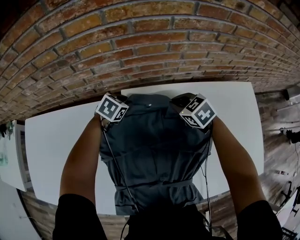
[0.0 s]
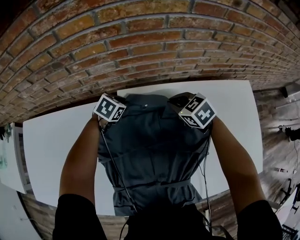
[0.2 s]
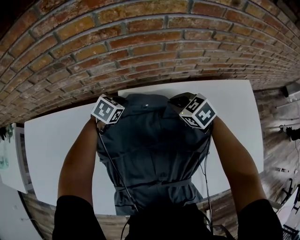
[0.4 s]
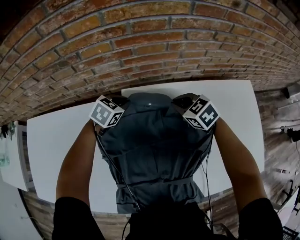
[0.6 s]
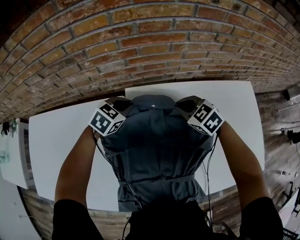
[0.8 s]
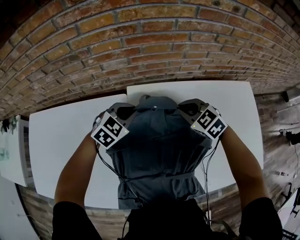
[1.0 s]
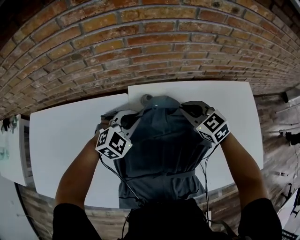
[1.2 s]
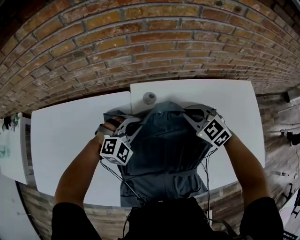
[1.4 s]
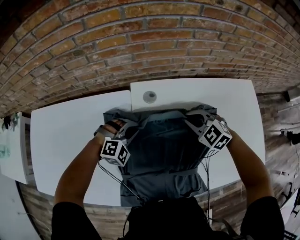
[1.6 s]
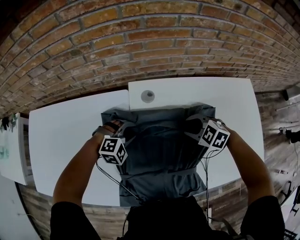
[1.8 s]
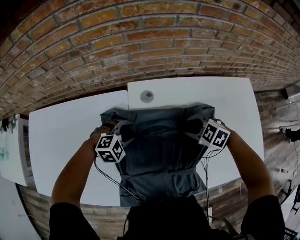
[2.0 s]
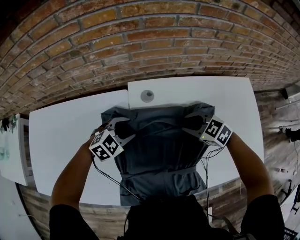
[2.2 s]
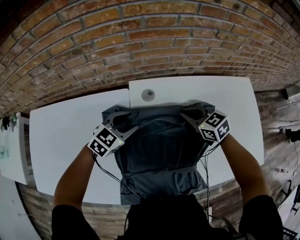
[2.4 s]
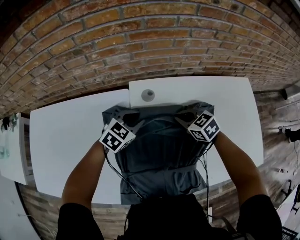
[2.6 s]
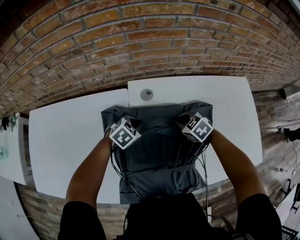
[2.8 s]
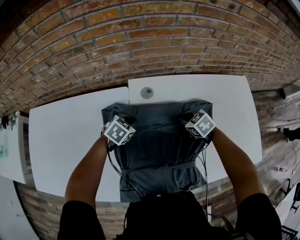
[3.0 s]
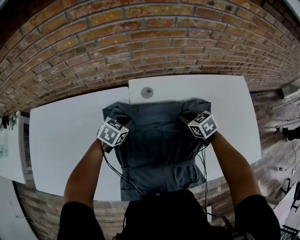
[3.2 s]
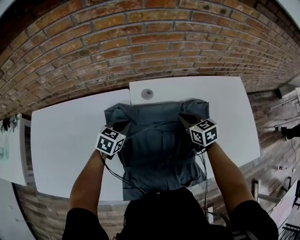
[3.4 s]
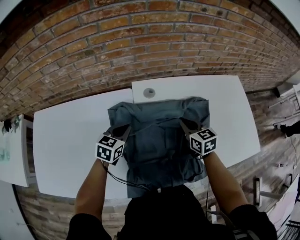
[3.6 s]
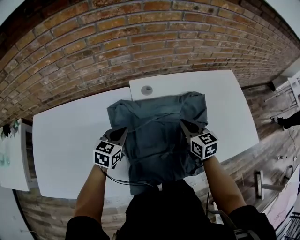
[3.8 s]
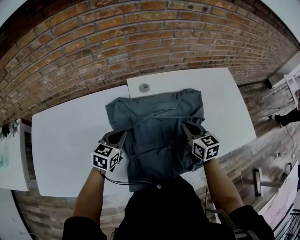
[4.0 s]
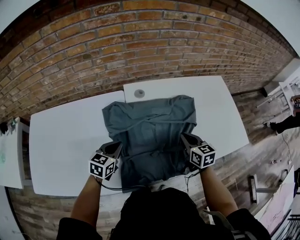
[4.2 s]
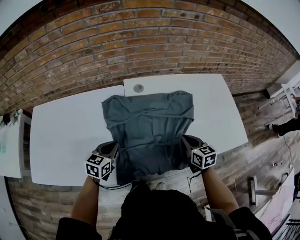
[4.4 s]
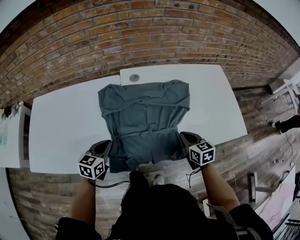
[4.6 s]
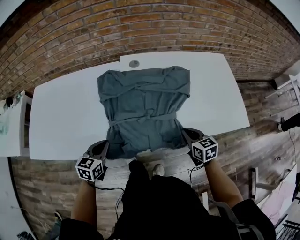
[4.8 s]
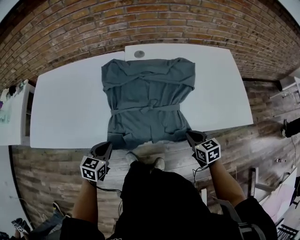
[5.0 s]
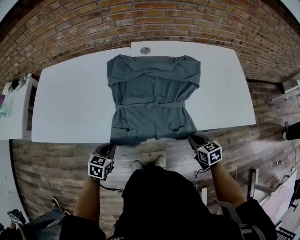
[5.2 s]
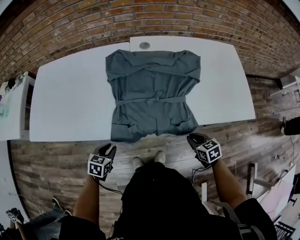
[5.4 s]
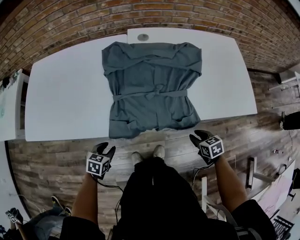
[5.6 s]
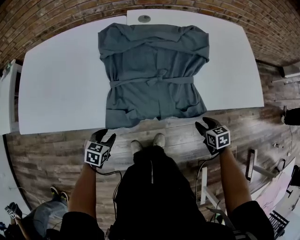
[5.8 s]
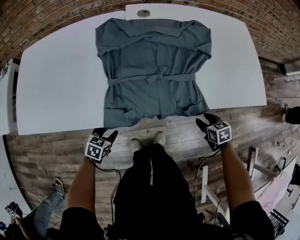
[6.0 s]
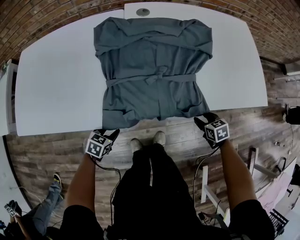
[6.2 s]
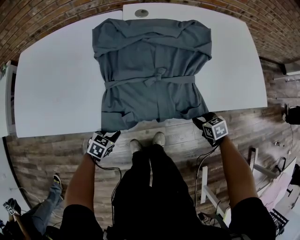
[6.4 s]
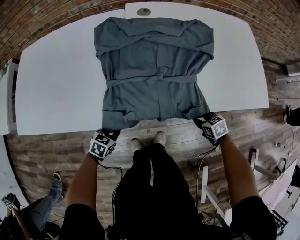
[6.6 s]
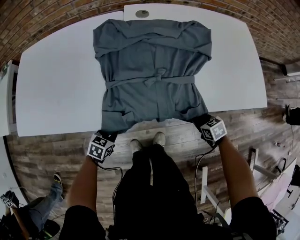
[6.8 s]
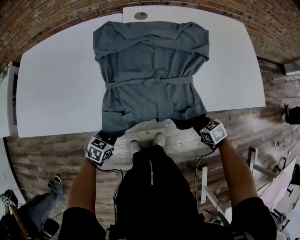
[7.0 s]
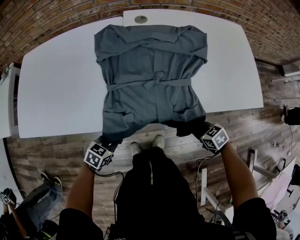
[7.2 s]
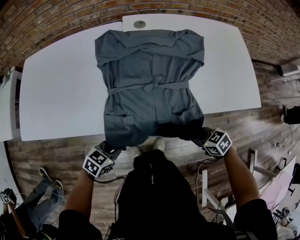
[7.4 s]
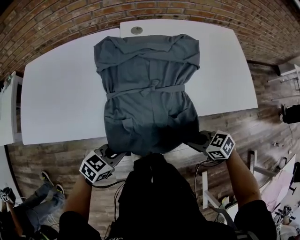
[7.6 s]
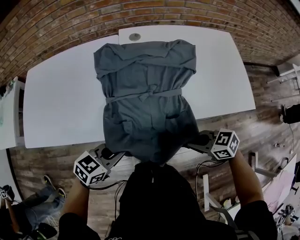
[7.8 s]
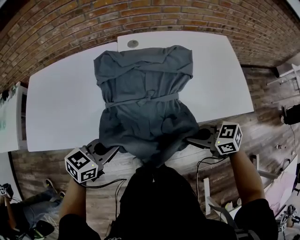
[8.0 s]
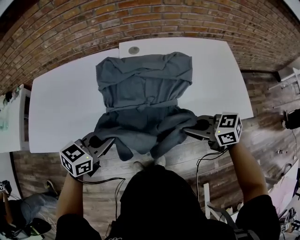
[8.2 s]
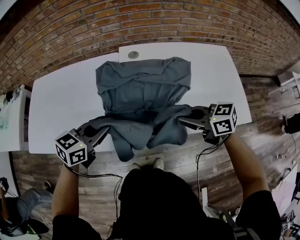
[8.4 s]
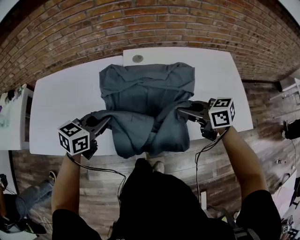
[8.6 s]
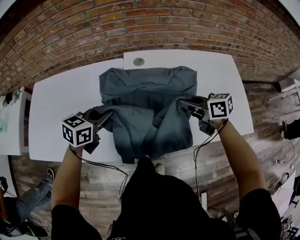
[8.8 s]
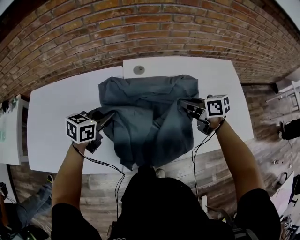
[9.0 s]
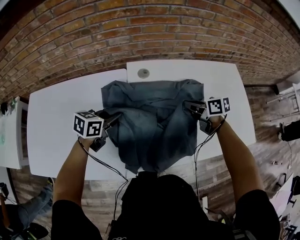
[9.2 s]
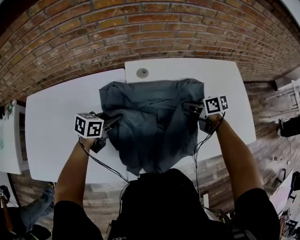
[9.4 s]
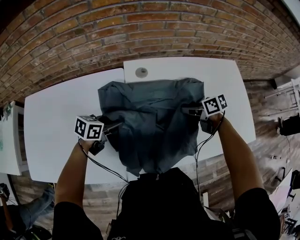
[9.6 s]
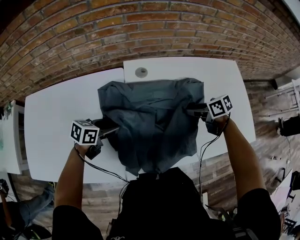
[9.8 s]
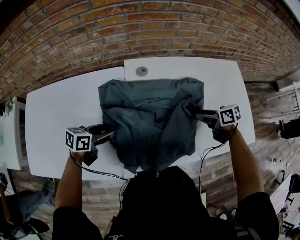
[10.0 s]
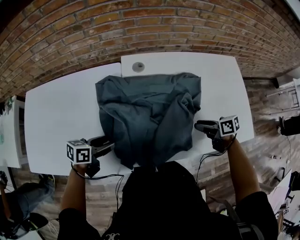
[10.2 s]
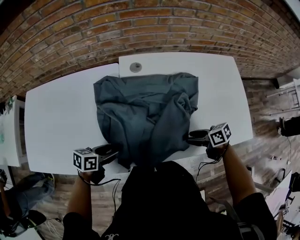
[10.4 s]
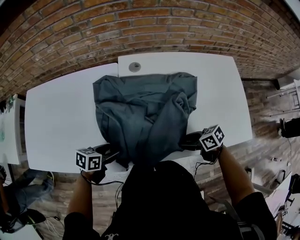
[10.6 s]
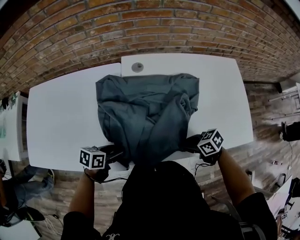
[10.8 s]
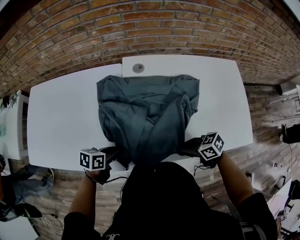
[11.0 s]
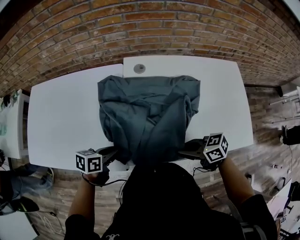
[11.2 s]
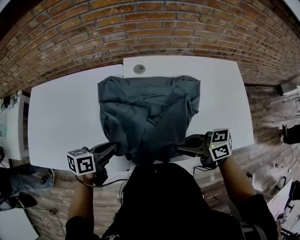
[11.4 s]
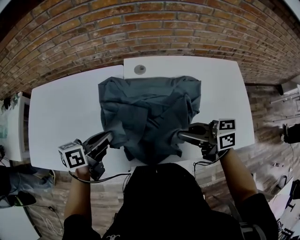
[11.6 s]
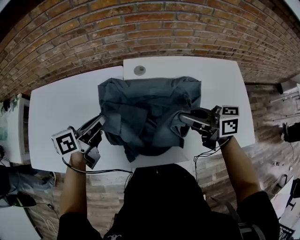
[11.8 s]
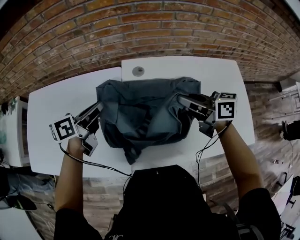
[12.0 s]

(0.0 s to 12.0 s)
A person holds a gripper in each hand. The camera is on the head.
0.0 s - 1.6 s: The left gripper heads backward, covering roughly 20 cm, and rotates around the line of its fingers by about 60 degrees, clockwise from behind. Meanwhile the right gripper heads backward, covering some 10 cm, and rotates about 30 degrees.
1.6 s - 3.0 s: The right gripper goes up and down, about 10 cm each way, reversing 2 times, rotates roughly 30 degrees, and opens, then closes again; the left gripper changes place by roughly 5 cm, rotates around the line of its fingers by some 50 degrees, counterclockwise from behind, and opens, then closes once more.
3.0 s - 4.4 s: Both grippers move backward and upward, approximately 20 cm. The right gripper rotates some 40 degrees; the left gripper turns by roughly 30 degrees.
4.4 s - 6.0 s: The right gripper travels downward, backward and to the right by approximately 30 cm, swivels roughly 30 degrees, and opens up. Meanwhile the left gripper is displaced backward and downward by roughly 30 cm, swivels about 30 degrees, and opens.
6.0 s - 7.6 s: Both grippers travel together upward, about 15 cm. The left gripper turns by some 20 degrees, and closes up. Meanwhile the right gripper swivels about 40 degrees, and closes its fingers.
7.6 s - 9.0 s: The left gripper changes place by some 35 cm; the right gripper changes place by roughly 35 cm, and swivels approximately 30 degrees.
9.0 s - 10.4 s: The right gripper ends up roughly 20 cm from where it was, swivels approximately 20 degrees, and opens its fingers. Meanwhile the left gripper ends up about 15 cm from where it was, changes its angle by approximately 30 degrees, and opens up.
10.4 s - 12.0 s: The right gripper shifts approximately 20 cm upward, changes its angle by about 30 degrees, and closes its fingers. The left gripper shifts by about 25 cm, turns by about 30 degrees, and closes up.

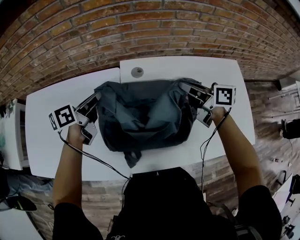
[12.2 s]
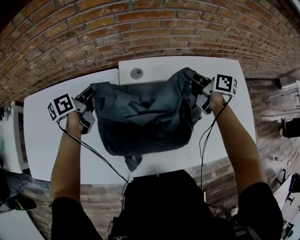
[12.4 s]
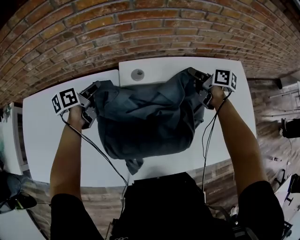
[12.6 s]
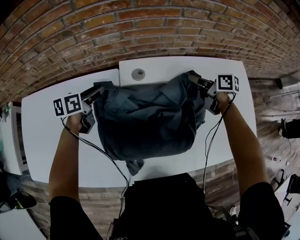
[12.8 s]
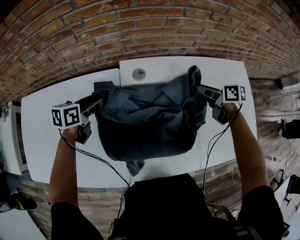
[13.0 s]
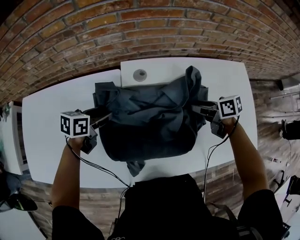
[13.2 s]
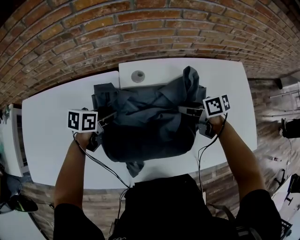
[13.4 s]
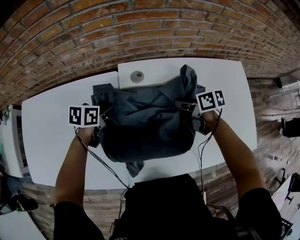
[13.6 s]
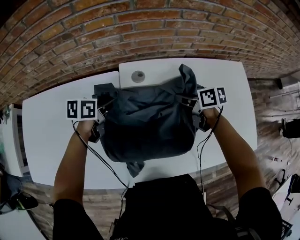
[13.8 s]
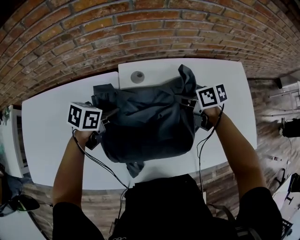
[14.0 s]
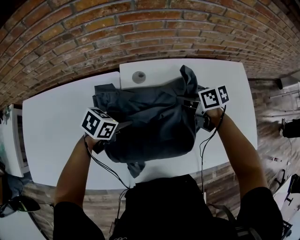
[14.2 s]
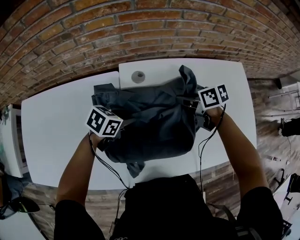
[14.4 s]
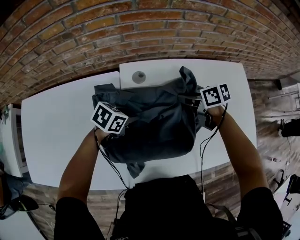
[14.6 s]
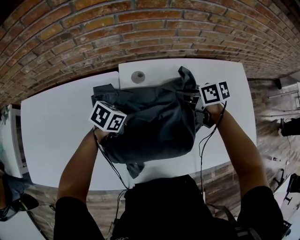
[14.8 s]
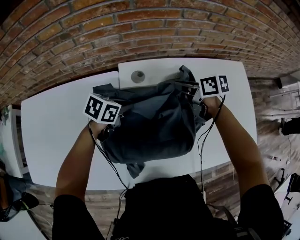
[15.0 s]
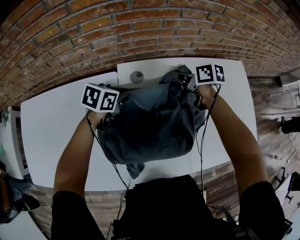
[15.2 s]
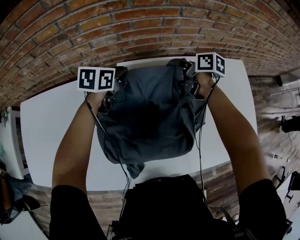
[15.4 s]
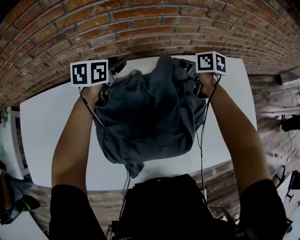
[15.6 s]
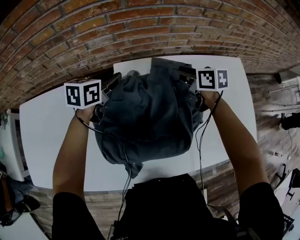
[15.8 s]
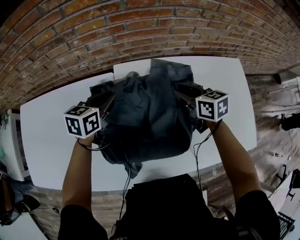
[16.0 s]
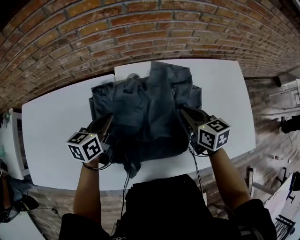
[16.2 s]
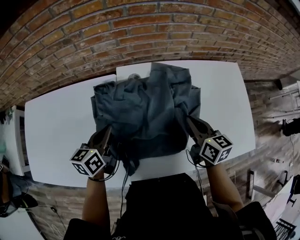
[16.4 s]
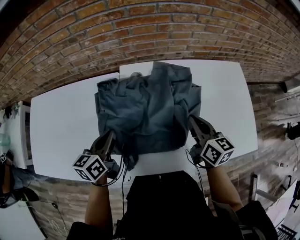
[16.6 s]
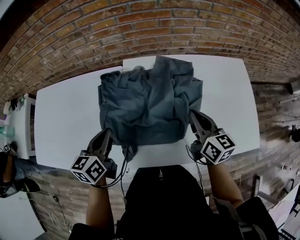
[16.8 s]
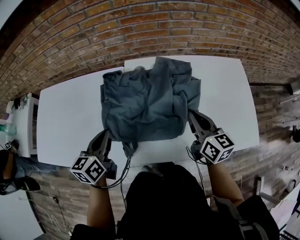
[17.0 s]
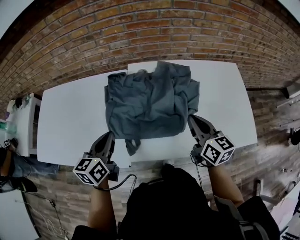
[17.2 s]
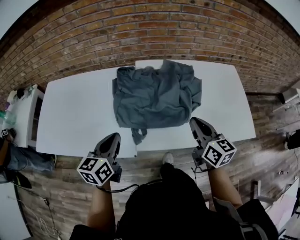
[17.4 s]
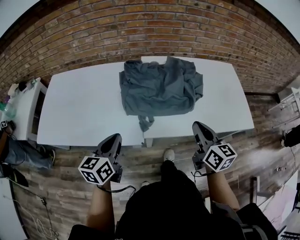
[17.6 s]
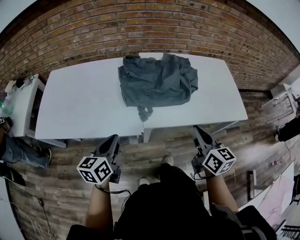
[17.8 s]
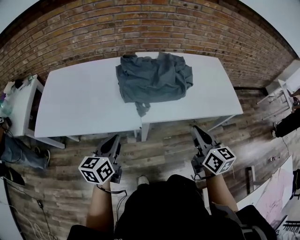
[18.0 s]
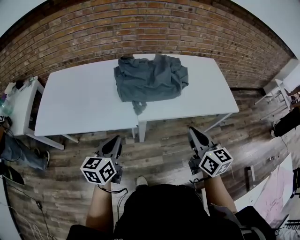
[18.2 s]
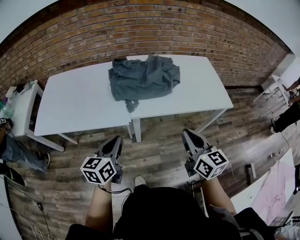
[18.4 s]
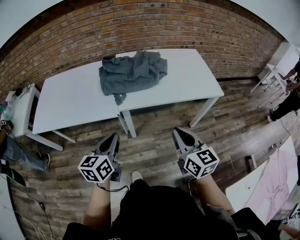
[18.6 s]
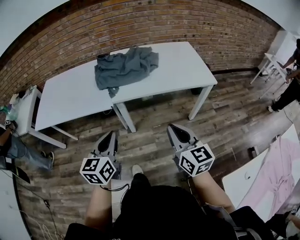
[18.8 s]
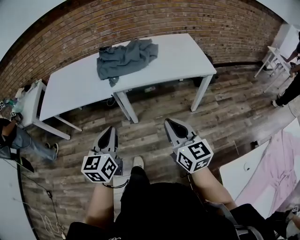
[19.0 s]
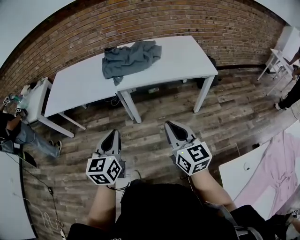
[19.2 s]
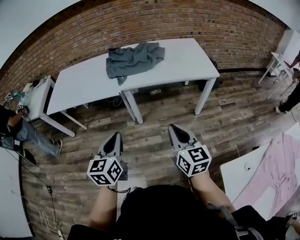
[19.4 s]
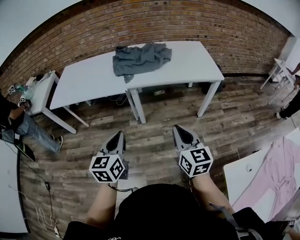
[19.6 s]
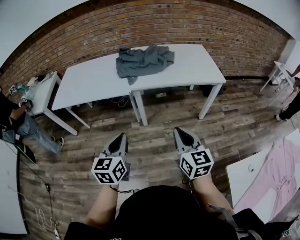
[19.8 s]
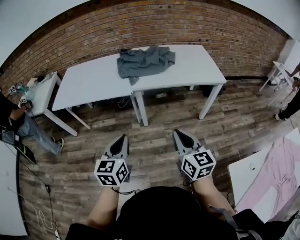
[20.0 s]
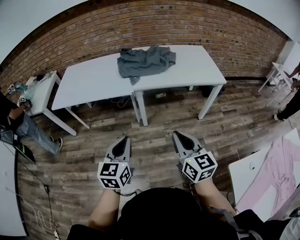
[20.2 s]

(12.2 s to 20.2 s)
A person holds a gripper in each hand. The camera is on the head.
12.2 s - 13.8 s: The two grippers go roughly 10 cm downward. The right gripper changes its angle by approximately 20 degrees, and opens, then closes again. Meanwhile the left gripper swivels about 30 degrees, and opens, then closes again.
13.8 s - 15.4 s: The right gripper moves approximately 15 cm; the left gripper changes place by some 15 cm, and opens and closes again.
15.4 s - 17.0 s: The two grippers go roughly 30 cm backward. The right gripper swivels some 30 degrees, and opens, then closes again, while the left gripper swivels some 30 degrees, and opens, then closes once more.
17.0 s - 18.6 s: Both grippers travel together backward, some 40 cm.
18.6 s - 20.2 s: The two grippers go some 20 cm backward.

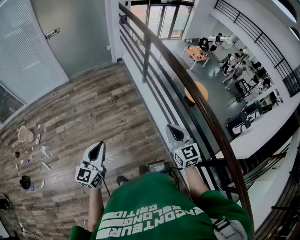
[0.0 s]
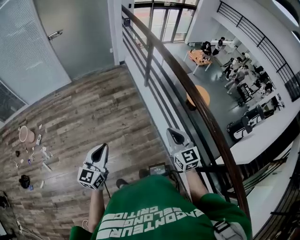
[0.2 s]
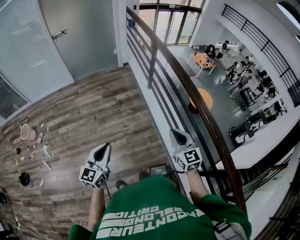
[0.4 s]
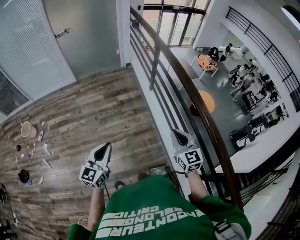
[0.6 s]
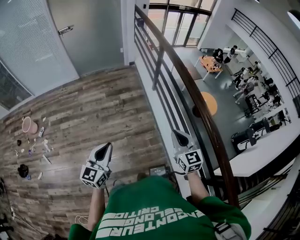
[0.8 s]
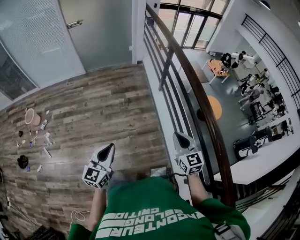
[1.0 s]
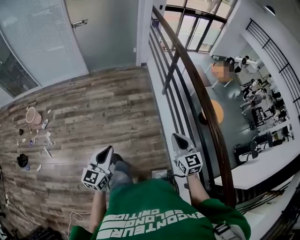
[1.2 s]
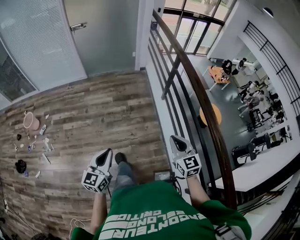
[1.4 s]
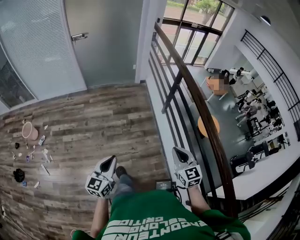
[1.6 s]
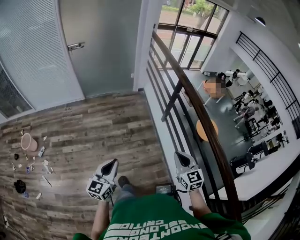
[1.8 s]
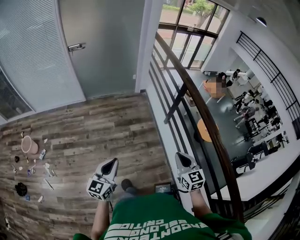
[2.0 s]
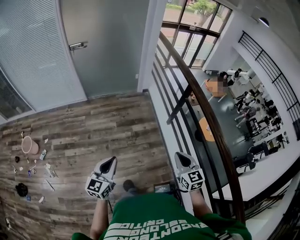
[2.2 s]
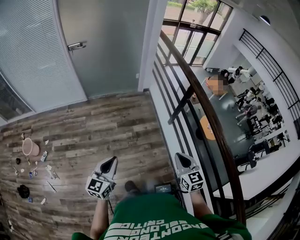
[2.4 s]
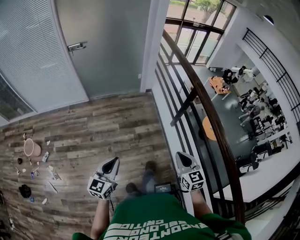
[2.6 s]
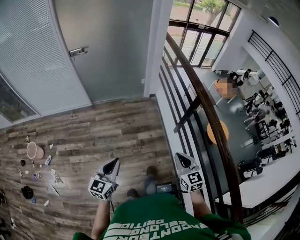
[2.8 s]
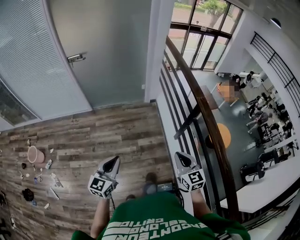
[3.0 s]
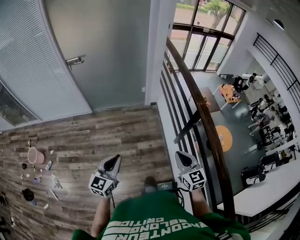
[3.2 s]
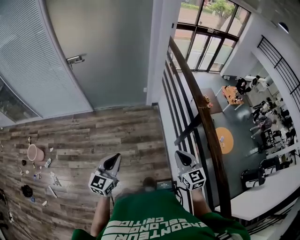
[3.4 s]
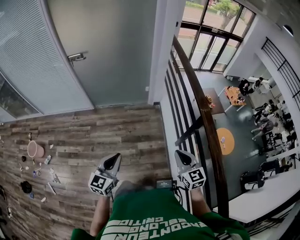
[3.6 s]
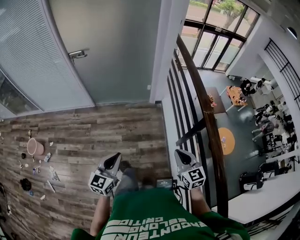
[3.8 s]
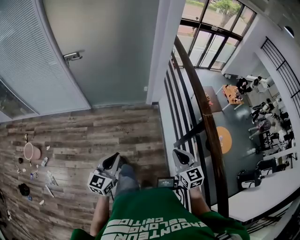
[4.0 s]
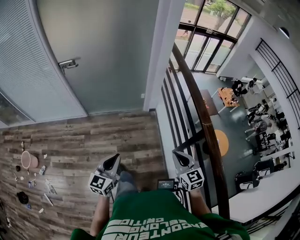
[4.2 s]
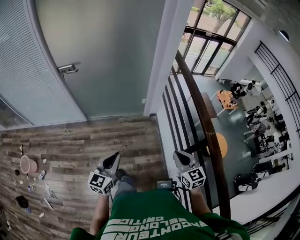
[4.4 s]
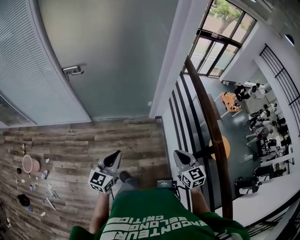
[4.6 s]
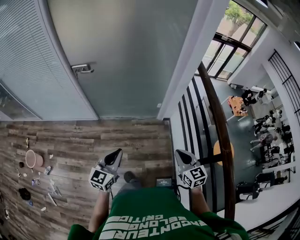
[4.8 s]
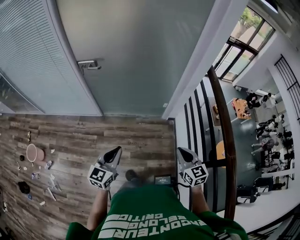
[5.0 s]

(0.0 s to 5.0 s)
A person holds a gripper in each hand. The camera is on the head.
0.0 s - 1.6 s: Both grippers travel together forward, some 15 cm.
1.6 s - 3.4 s: The two grippers go approximately 35 cm forward.
3.4 s - 5.0 s: Both grippers travel together forward and to the left, approximately 30 cm.
